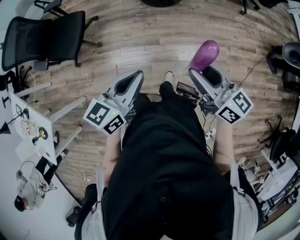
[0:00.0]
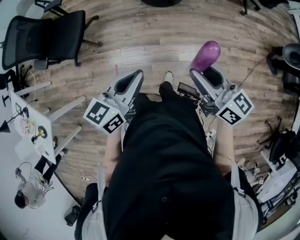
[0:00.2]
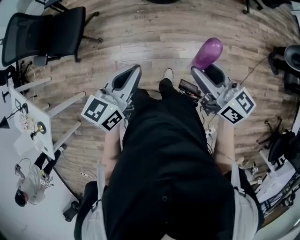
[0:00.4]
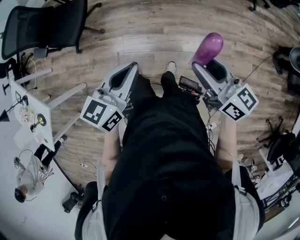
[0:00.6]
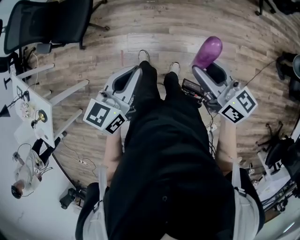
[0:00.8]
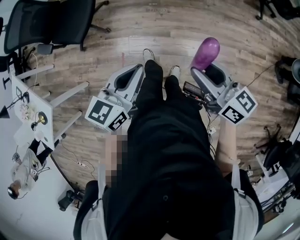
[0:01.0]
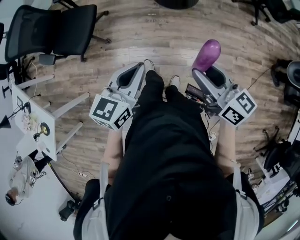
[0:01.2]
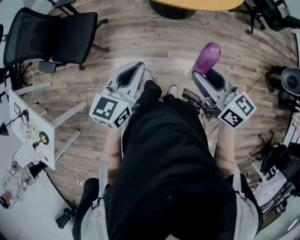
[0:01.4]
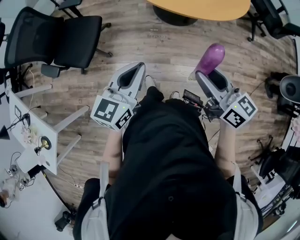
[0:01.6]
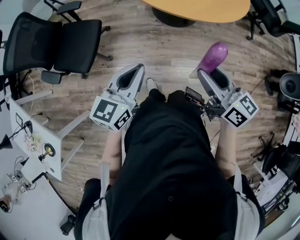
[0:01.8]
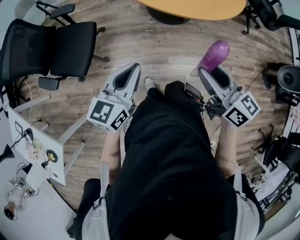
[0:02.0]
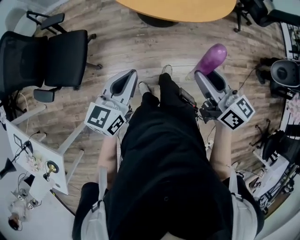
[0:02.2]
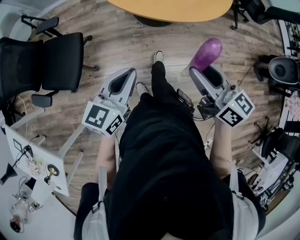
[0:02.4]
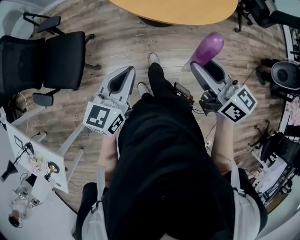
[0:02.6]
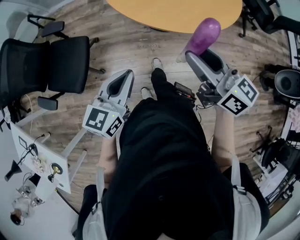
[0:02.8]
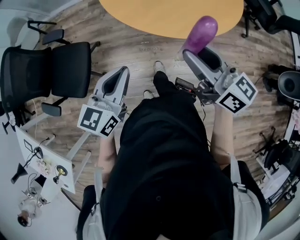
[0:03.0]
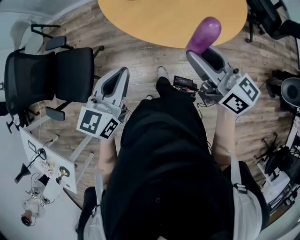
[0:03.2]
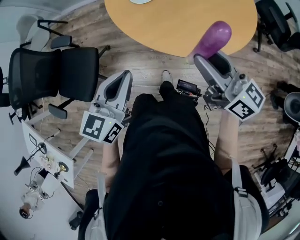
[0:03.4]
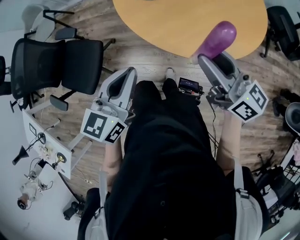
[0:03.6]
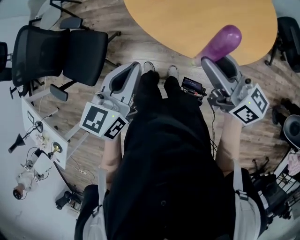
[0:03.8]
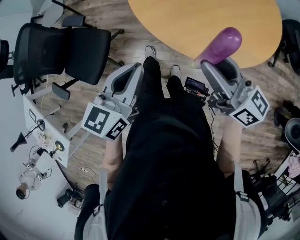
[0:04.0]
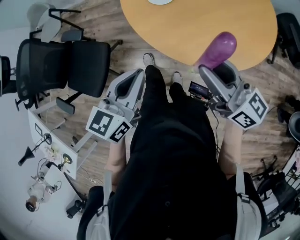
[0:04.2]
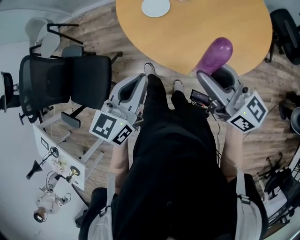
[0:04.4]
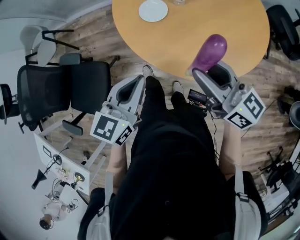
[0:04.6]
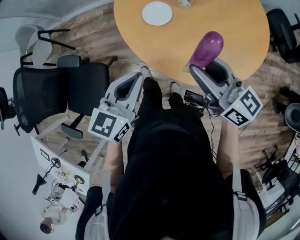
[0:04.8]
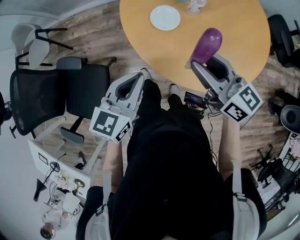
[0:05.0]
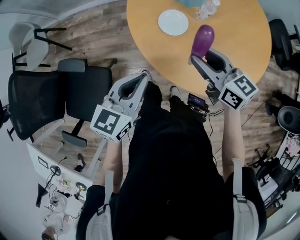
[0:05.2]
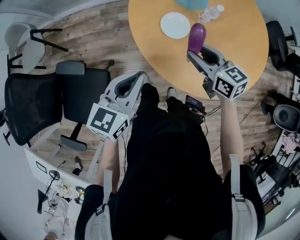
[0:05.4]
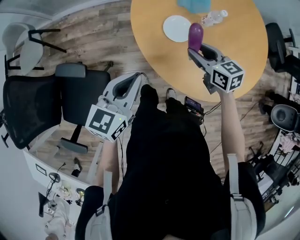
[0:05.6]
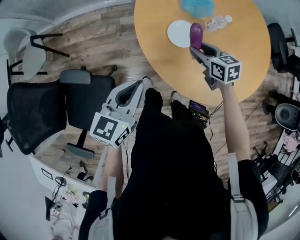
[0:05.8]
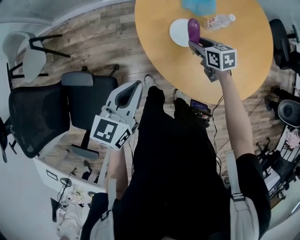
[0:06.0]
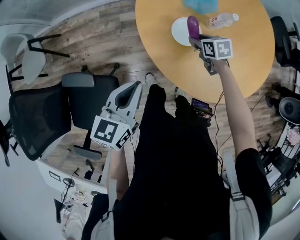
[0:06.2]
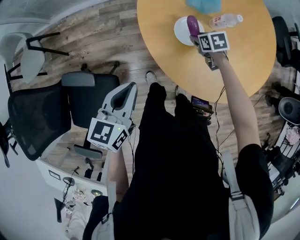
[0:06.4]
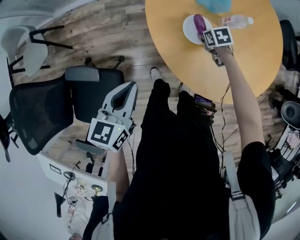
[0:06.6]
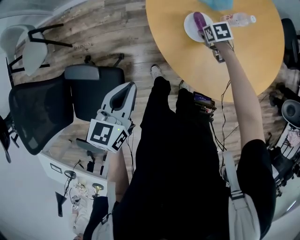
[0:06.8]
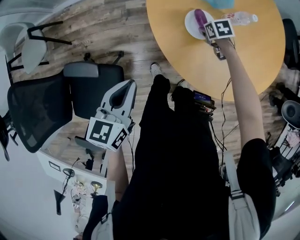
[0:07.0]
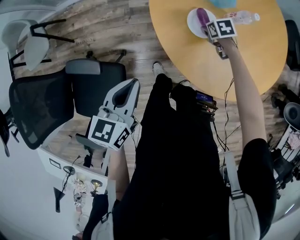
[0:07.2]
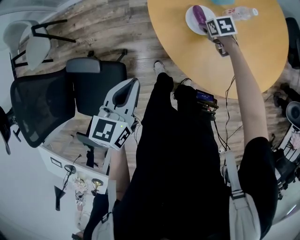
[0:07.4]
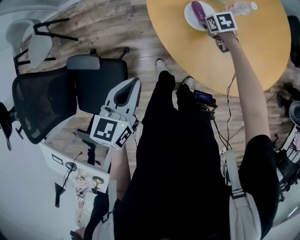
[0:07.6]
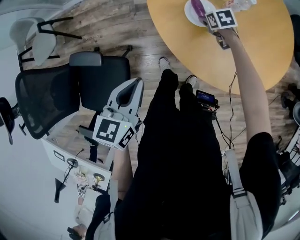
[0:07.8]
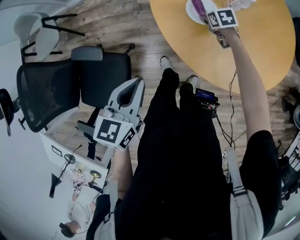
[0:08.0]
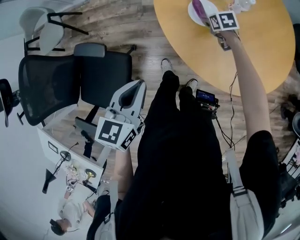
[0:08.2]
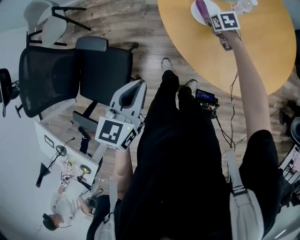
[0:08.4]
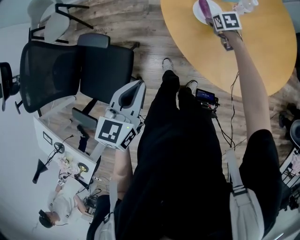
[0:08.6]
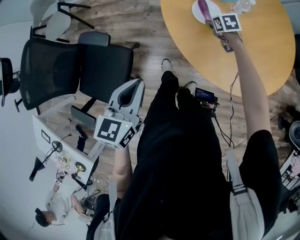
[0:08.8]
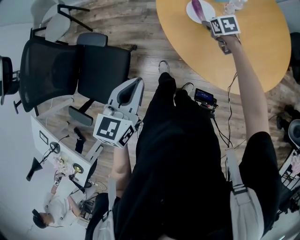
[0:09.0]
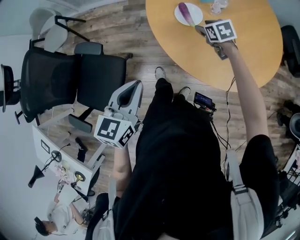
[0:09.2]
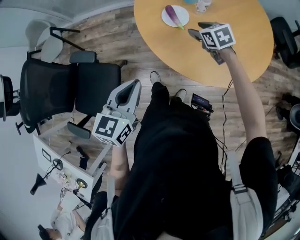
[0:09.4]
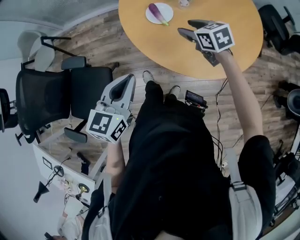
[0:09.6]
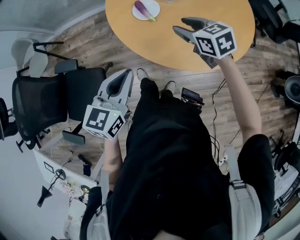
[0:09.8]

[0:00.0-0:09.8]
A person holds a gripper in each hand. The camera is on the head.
0:00.0 to 0:01.4: Both grippers travel together forward and to the left, approximately 15 cm.
0:01.4 to 0:02.8: Both grippers travel together forward, approximately 20 cm.
0:02.8 to 0:04.2: Both grippers move forward, roughly 20 cm.
0:04.2 to 0:05.6: The right gripper moves forward, downward and to the left, approximately 35 cm, and tilts its fingers about 40 degrees downward. The left gripper heads forward and to the left, covering approximately 30 cm.
0:05.6 to 0:07.0: The right gripper travels downward by roughly 20 cm, and tilts its fingers approximately 40 degrees downward, while the left gripper ends up about 10 cm from where it was.
0:07.0 to 0:08.4: The left gripper moves some 15 cm.
0:08.4 to 0:09.8: The left gripper is displaced to the right and backward by about 15 cm. The right gripper shifts some 30 cm upward and backward, and changes its angle by about 30 degrees.

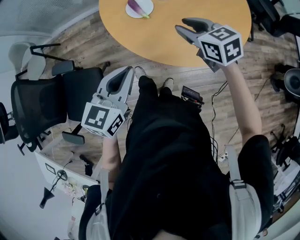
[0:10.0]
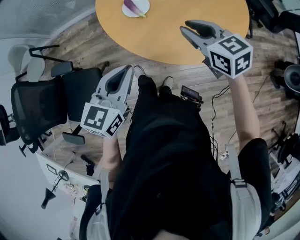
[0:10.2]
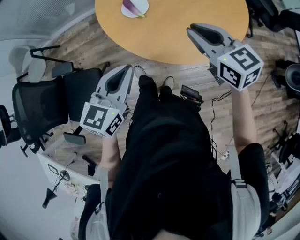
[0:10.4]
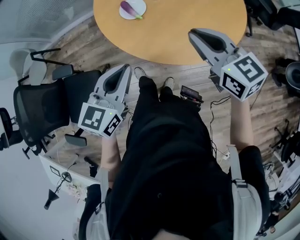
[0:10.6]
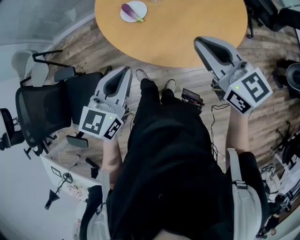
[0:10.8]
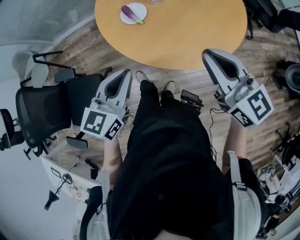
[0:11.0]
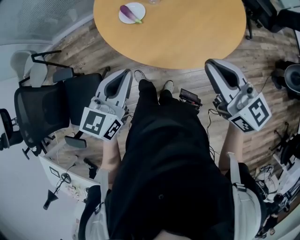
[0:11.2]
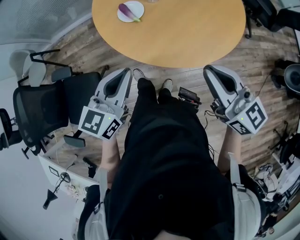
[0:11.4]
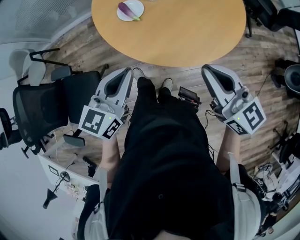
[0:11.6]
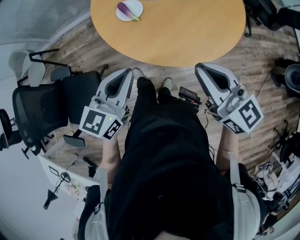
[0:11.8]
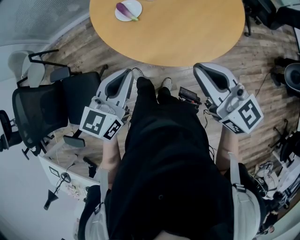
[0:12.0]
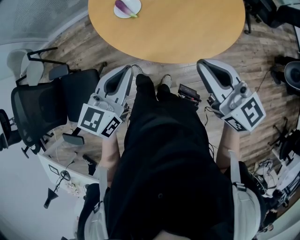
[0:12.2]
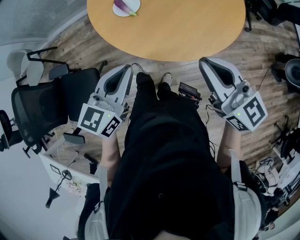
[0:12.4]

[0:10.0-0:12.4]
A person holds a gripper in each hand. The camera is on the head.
0:10.0 to 0:11.2: The right gripper is displaced backward, upward and to the right by about 20 cm, turns by roughly 30 degrees, and closes.
0:11.2 to 0:12.4: The grippers stay close to where they were, moving slightly.

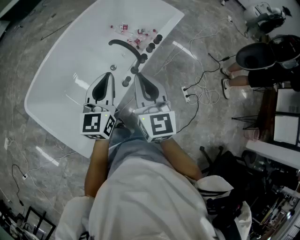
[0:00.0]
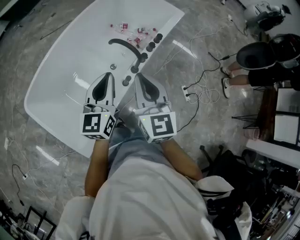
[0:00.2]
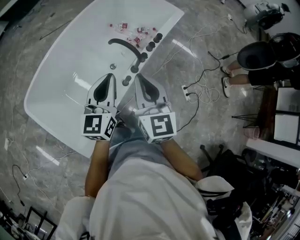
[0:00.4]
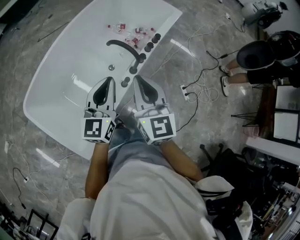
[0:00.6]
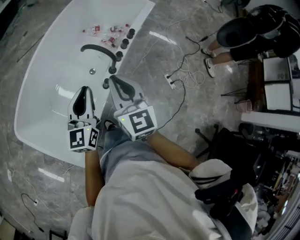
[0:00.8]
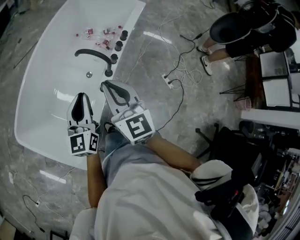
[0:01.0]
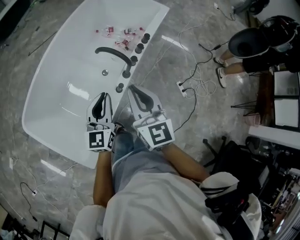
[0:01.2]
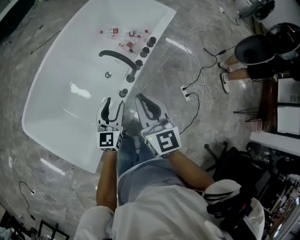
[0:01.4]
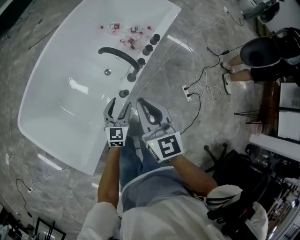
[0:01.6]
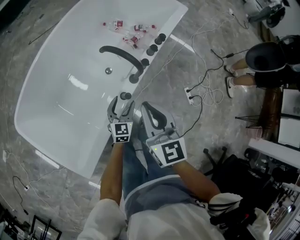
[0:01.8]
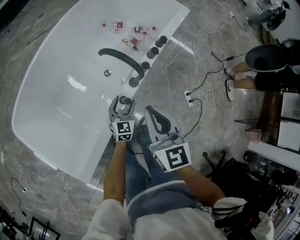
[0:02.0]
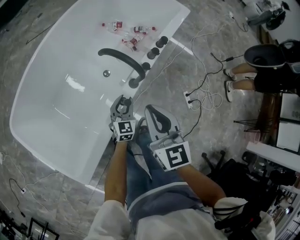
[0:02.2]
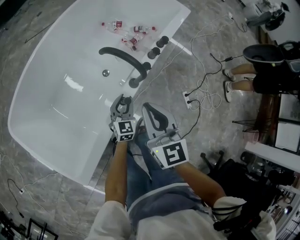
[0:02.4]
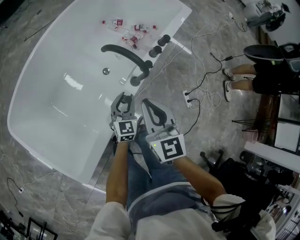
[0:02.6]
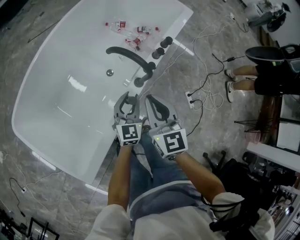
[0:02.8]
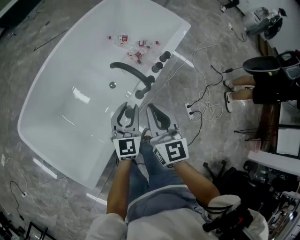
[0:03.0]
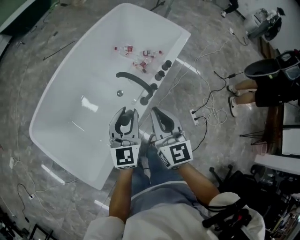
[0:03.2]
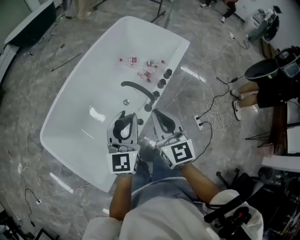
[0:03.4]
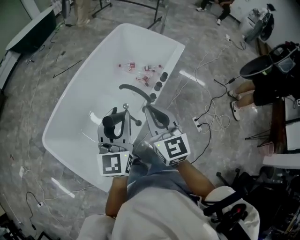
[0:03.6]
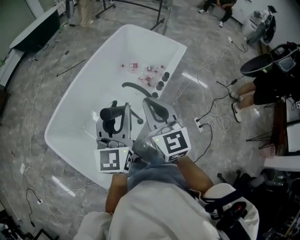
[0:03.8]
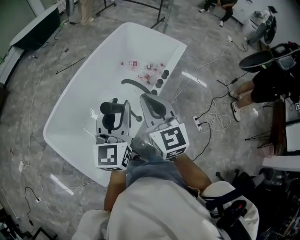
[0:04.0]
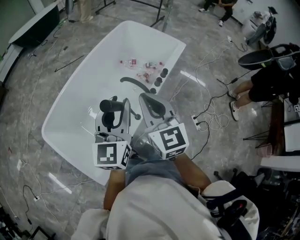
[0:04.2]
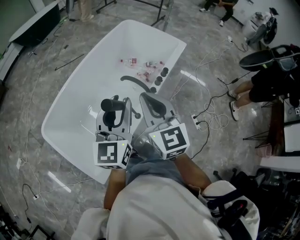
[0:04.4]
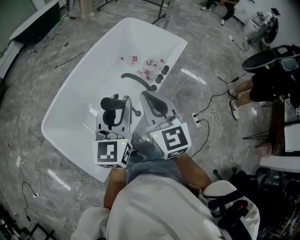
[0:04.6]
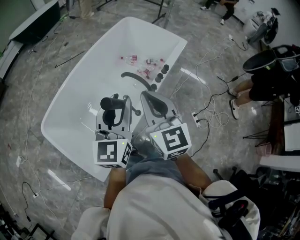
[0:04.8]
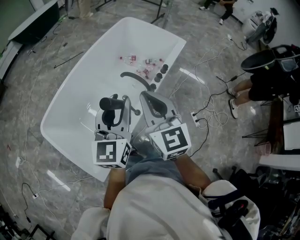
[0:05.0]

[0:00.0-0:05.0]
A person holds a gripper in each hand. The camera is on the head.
0:00.0 to 0:01.6: The left gripper goes approximately 35 cm downward, and opens its fingers; the right gripper moves downward and forward, some 20 cm.
0:01.6 to 0:03.4: The right gripper moves upward, roughly 15 cm; the left gripper heads upward, covering some 35 cm, and closes its fingers.
0:03.4 to 0:05.0: Both grippers travel together upward and backward, roughly 15 cm.

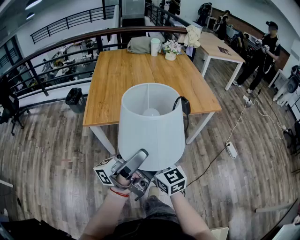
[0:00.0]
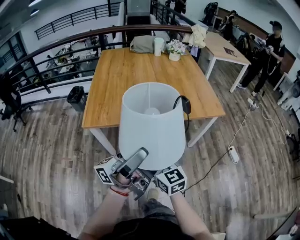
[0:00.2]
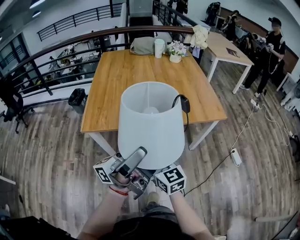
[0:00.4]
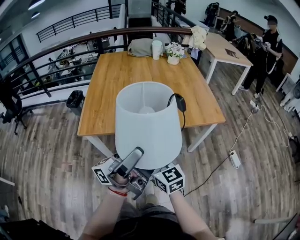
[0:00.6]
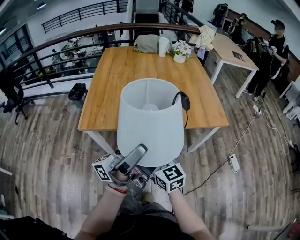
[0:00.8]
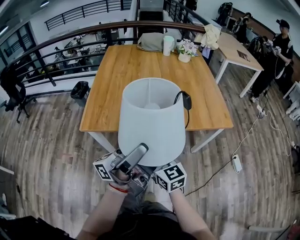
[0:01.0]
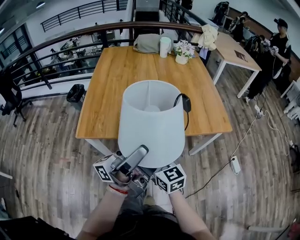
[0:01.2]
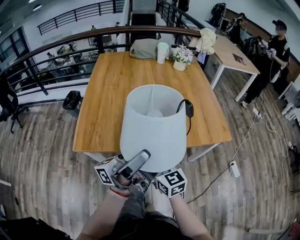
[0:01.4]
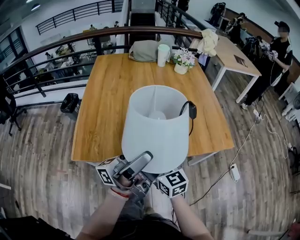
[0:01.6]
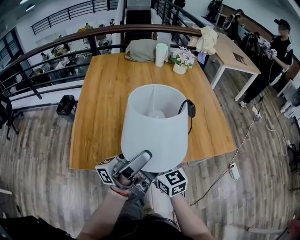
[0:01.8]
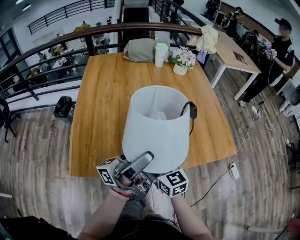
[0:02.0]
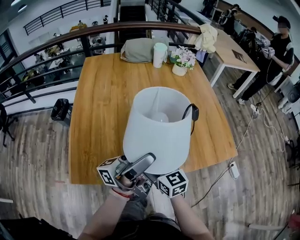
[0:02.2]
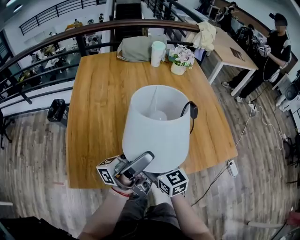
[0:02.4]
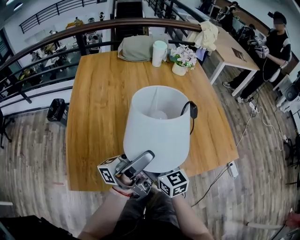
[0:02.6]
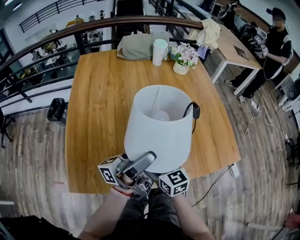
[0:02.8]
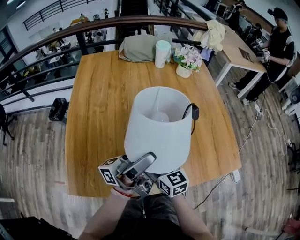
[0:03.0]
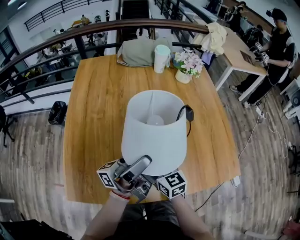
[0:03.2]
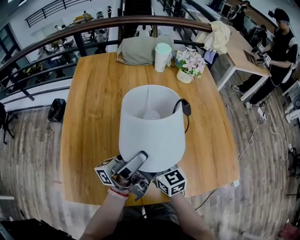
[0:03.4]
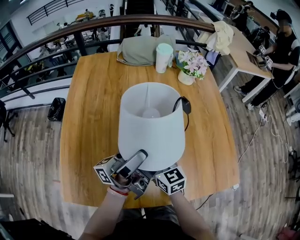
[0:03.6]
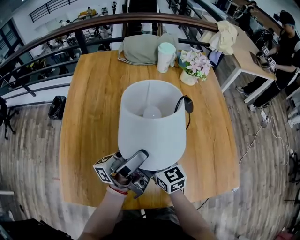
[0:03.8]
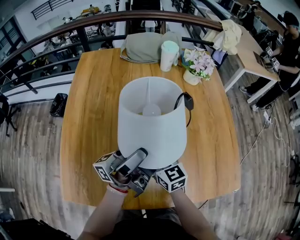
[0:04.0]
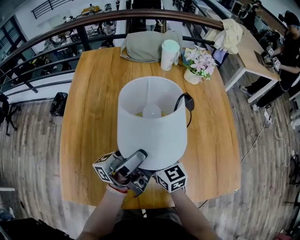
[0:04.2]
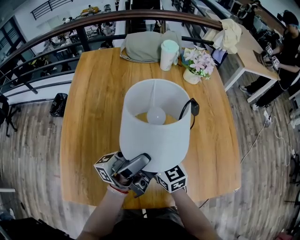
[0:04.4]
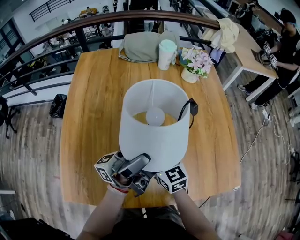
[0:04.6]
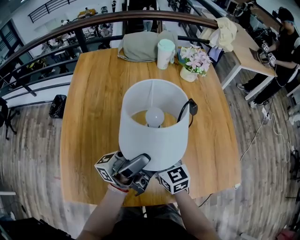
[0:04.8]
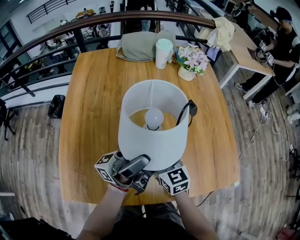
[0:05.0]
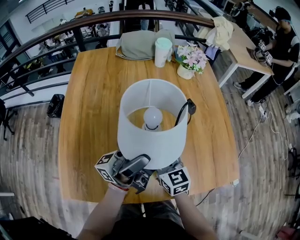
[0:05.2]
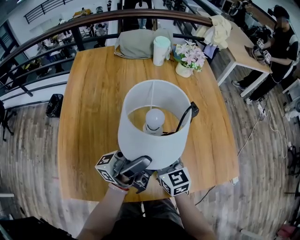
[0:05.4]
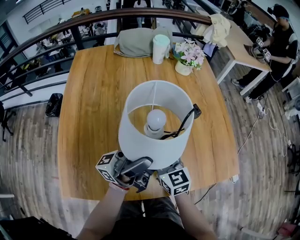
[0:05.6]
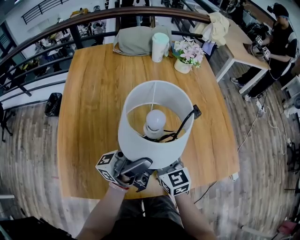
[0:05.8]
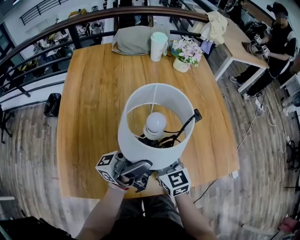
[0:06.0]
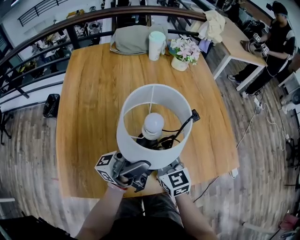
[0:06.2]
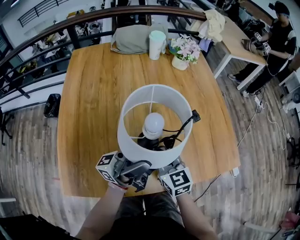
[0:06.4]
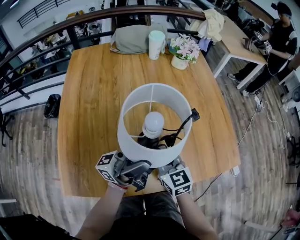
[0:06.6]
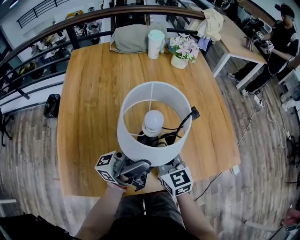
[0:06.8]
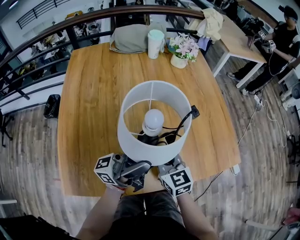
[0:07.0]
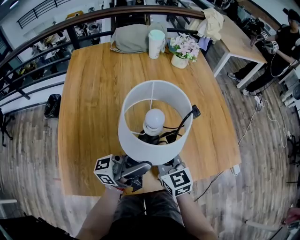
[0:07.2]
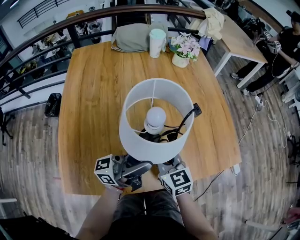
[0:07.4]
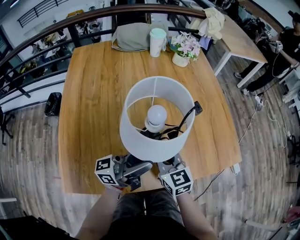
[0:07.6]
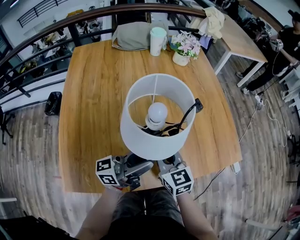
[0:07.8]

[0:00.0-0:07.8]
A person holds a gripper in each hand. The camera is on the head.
0:00.0 to 0:01.6: The two grippers go some 30 cm forward.
0:01.6 to 0:03.2: The grippers both shift forward by some 20 cm.
0:03.2 to 0:04.6: Both grippers travel together forward, some 5 cm.
0:04.6 to 0:06.2: Both grippers travel together backward, some 5 cm. The right gripper closes.
0:06.2 to 0:07.8: The left gripper shifts some 10 cm downward, and turns by roughly 30 degrees.
